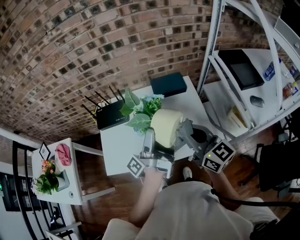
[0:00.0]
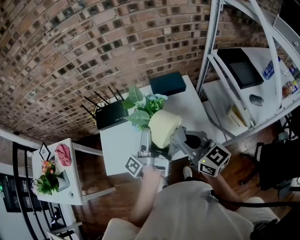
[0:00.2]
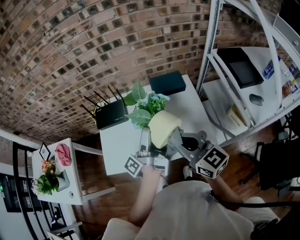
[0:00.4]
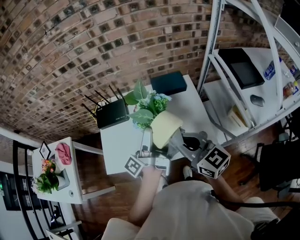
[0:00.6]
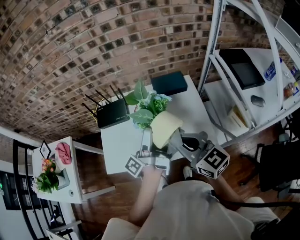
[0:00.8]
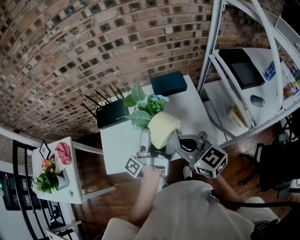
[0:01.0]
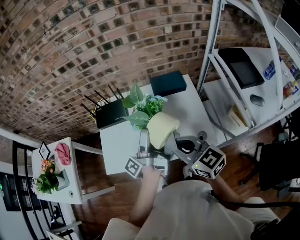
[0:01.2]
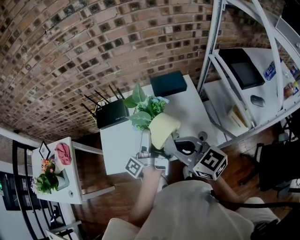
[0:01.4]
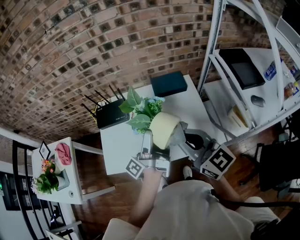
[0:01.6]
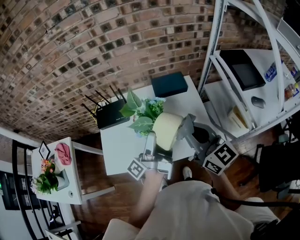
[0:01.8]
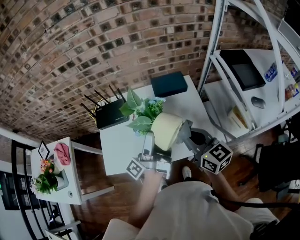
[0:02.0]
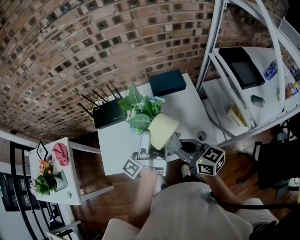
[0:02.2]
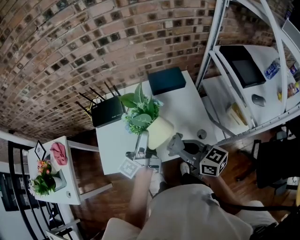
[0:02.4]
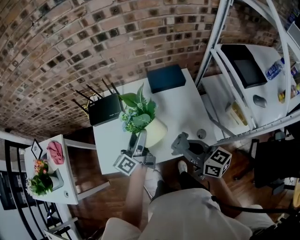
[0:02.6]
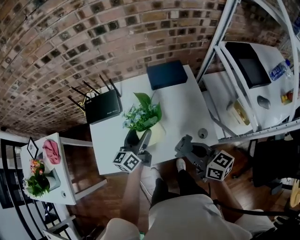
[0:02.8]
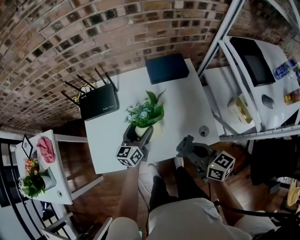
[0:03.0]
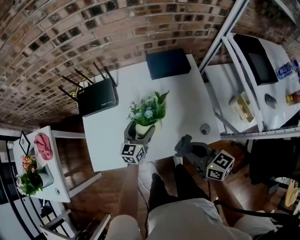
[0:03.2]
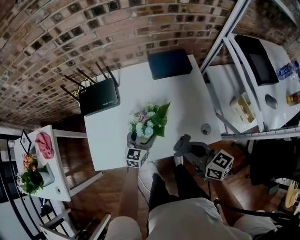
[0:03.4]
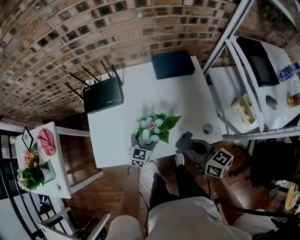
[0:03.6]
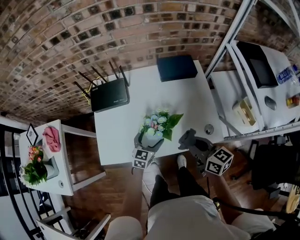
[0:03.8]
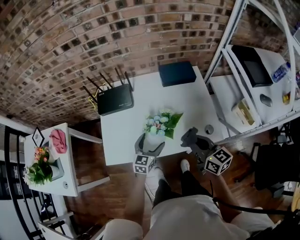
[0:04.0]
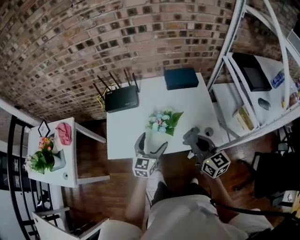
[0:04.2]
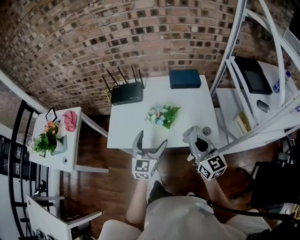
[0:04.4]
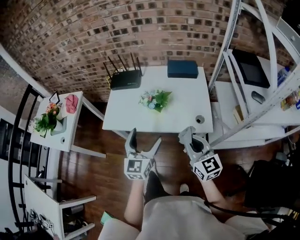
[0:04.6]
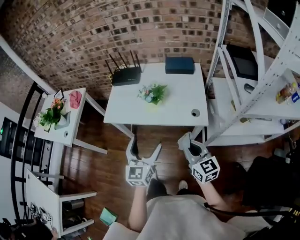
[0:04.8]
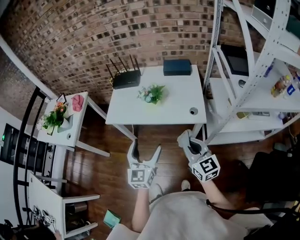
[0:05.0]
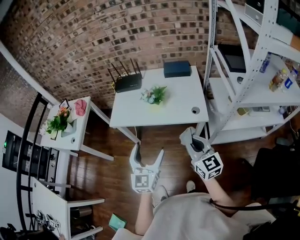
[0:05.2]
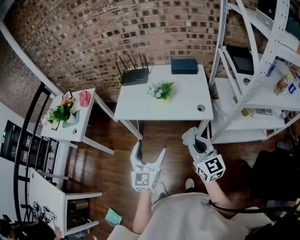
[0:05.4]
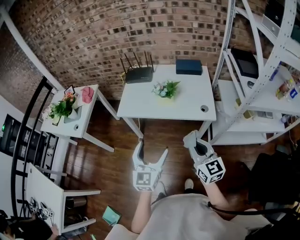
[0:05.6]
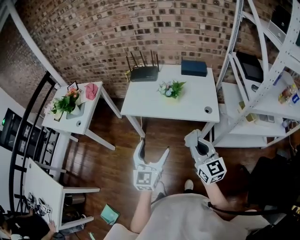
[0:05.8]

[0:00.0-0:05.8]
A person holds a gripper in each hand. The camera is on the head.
0:00.0 to 0:01.4: The right gripper moves to the left, approximately 5 cm.
0:01.4 to 0:02.8: The right gripper moves downward and to the right, about 15 cm, and rotates approximately 30 degrees, while the left gripper goes some 15 cm downward and forward, and twists approximately 50 degrees clockwise, seen from behind.
0:02.8 to 0:04.4: The right gripper heads backward, covering about 10 cm, and changes its angle by some 30 degrees; the left gripper moves backward, some 20 cm, goes downward and returns, roughly 15 cm each way, and rotates roughly 40 degrees.
0:04.4 to 0:05.8: Both grippers move backward, roughly 25 cm.

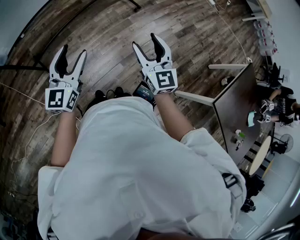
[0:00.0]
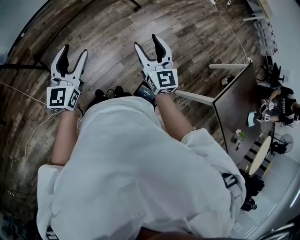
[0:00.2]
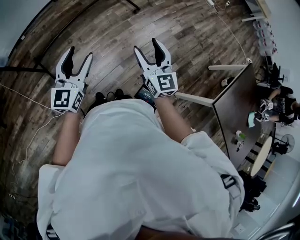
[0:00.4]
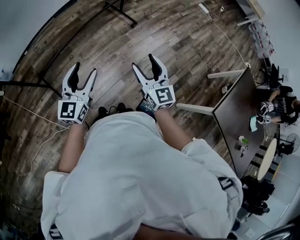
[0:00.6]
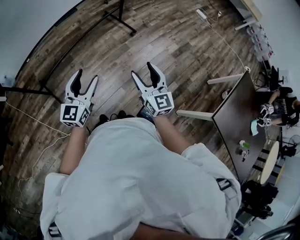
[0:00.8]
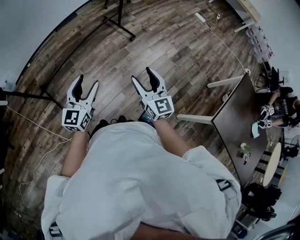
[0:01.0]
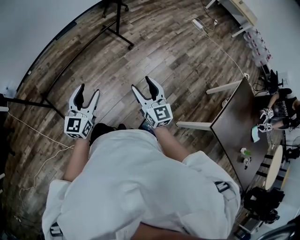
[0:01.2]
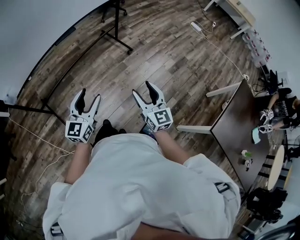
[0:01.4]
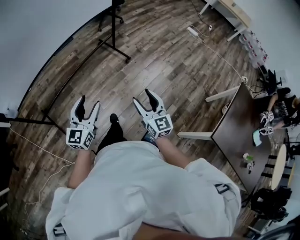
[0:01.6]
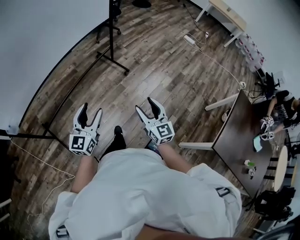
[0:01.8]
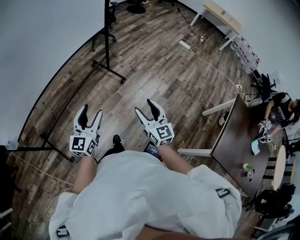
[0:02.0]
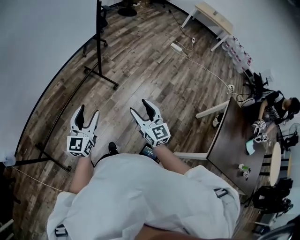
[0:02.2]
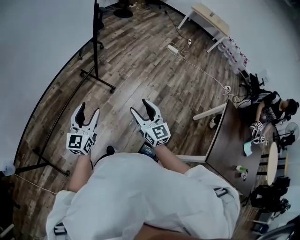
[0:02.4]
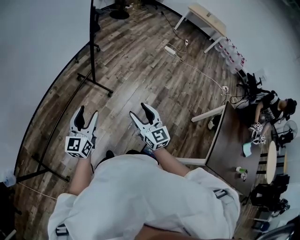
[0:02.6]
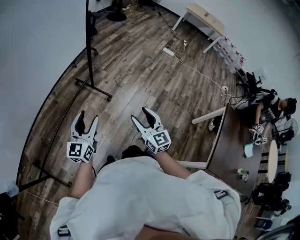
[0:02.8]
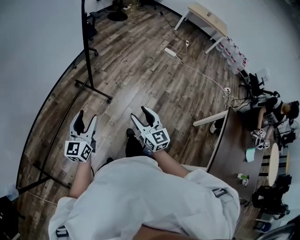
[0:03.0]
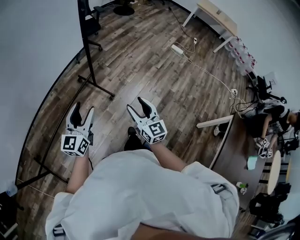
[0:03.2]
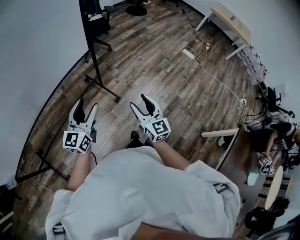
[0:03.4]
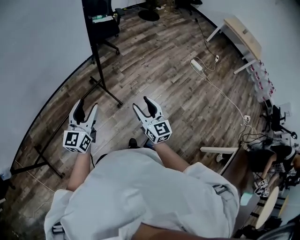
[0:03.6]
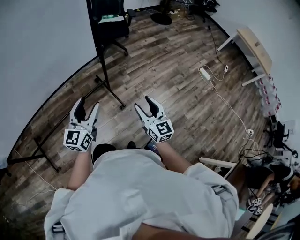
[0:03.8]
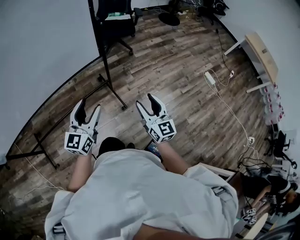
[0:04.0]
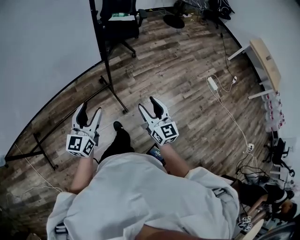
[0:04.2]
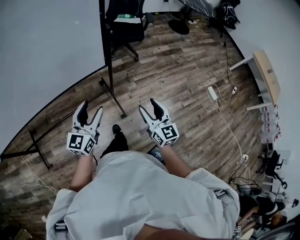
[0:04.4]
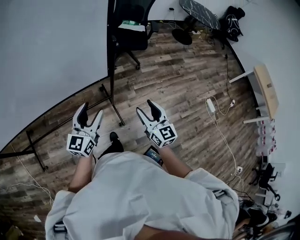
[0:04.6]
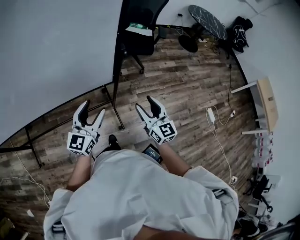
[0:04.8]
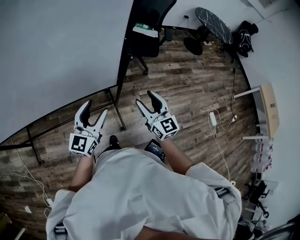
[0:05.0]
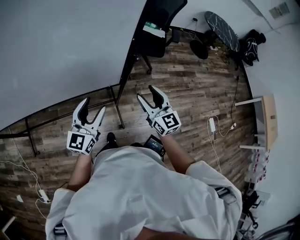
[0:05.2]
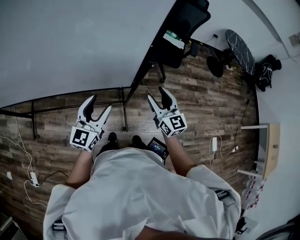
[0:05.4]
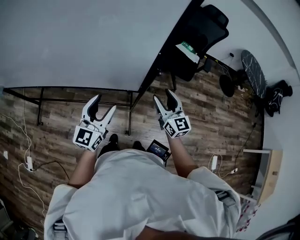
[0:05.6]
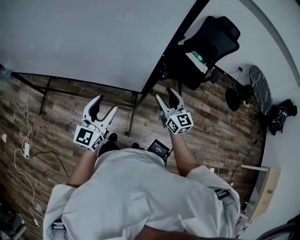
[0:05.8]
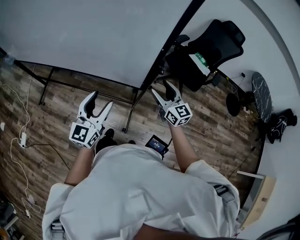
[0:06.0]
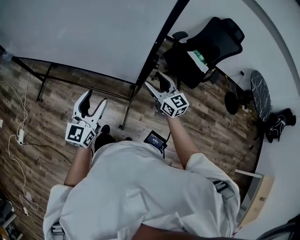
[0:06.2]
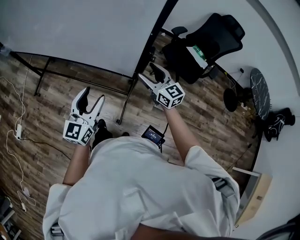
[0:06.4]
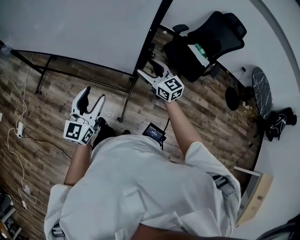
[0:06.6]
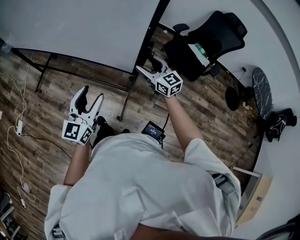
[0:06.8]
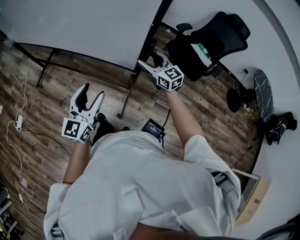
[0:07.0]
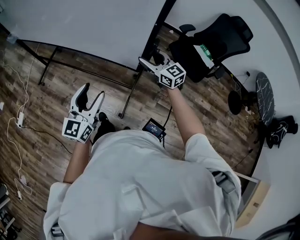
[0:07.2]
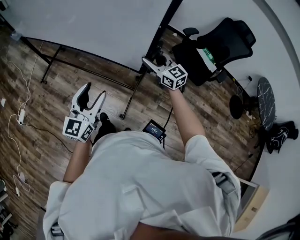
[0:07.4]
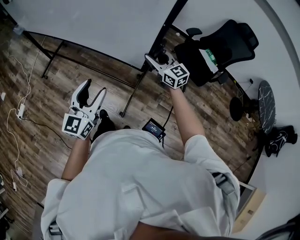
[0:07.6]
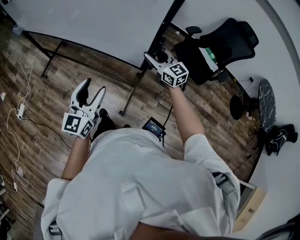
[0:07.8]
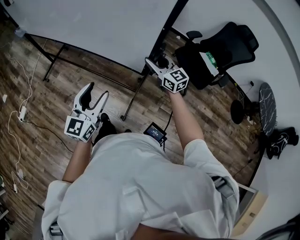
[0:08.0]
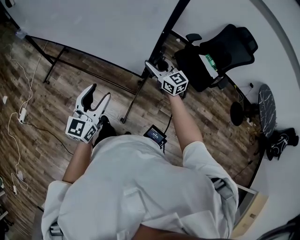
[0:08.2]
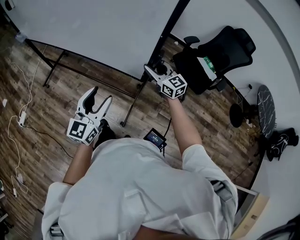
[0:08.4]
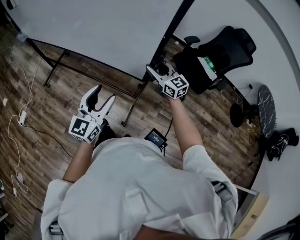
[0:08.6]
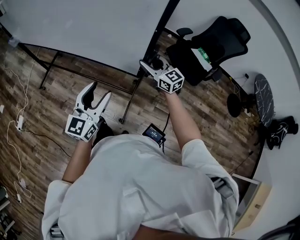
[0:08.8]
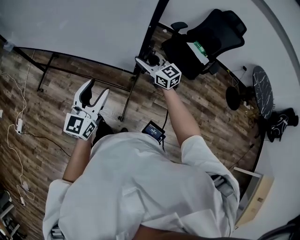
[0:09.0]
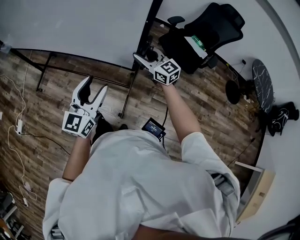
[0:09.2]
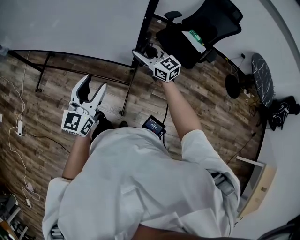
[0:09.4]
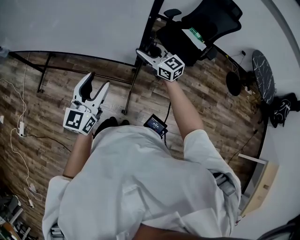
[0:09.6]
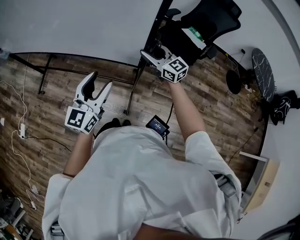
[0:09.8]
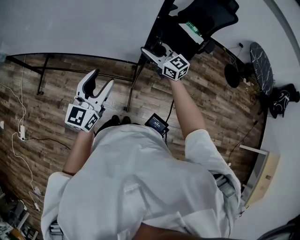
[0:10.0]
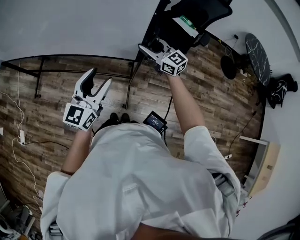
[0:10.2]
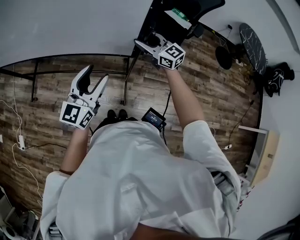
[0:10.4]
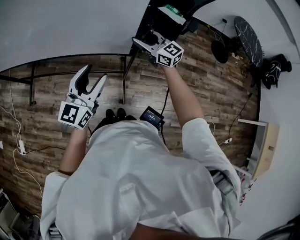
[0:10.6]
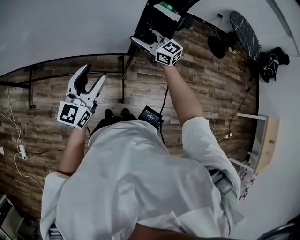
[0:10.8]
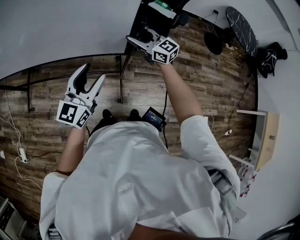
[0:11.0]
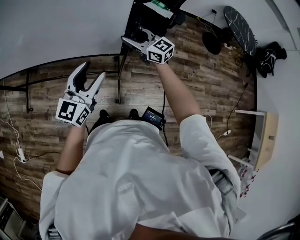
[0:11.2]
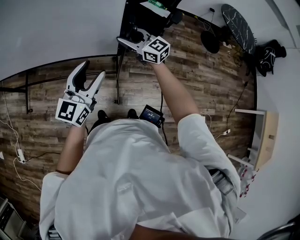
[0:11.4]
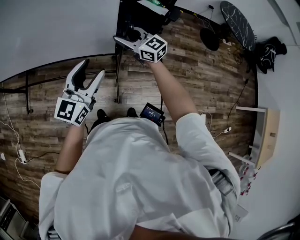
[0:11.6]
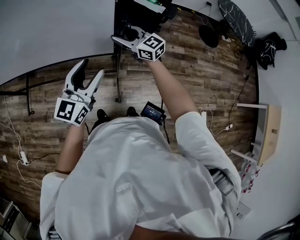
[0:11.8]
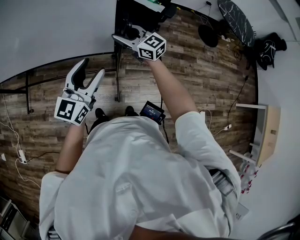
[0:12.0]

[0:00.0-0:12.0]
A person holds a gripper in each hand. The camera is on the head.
0:00.0 to 0:01.6: The right gripper heads to the right, covering about 10 cm. Meanwhile the left gripper heads to the right and forward, covering roughly 10 cm.
0:01.6 to 0:03.0: The two grippers go some 35 cm forward.
0:03.0 to 0:04.4: The left gripper shifts by approximately 35 cm, and rotates about 30 degrees; the right gripper changes place by approximately 40 cm, and changes its angle by roughly 30 degrees.
0:04.4 to 0:06.0: The right gripper changes place by approximately 30 cm, and swivels approximately 50 degrees. The left gripper moves some 10 cm, and rotates about 40 degrees.
0:06.0 to 0:07.6: The right gripper travels forward by some 5 cm, swivels approximately 20 degrees, and closes up; the left gripper heads backward, covering roughly 5 cm.
0:07.6 to 0:09.0: The left gripper shifts roughly 10 cm to the right.
0:09.0 to 0:10.4: Both grippers travel together to the right, roughly 5 cm.
0:10.4 to 0:12.0: Both grippers move to the right, about 15 cm.

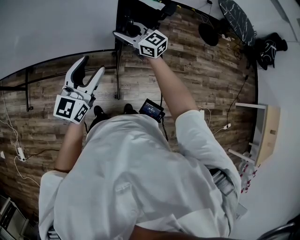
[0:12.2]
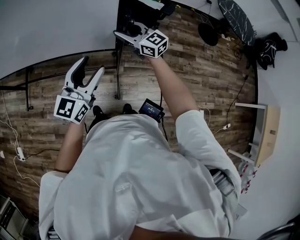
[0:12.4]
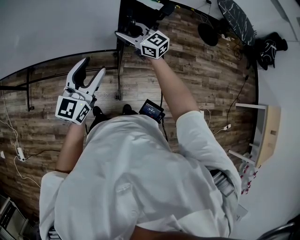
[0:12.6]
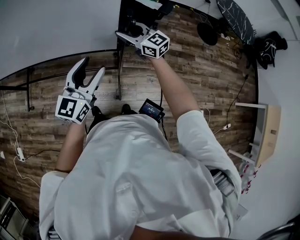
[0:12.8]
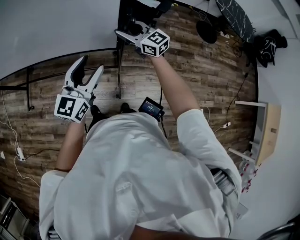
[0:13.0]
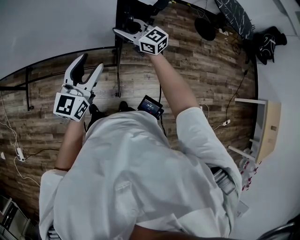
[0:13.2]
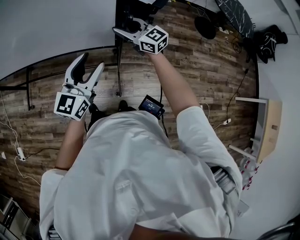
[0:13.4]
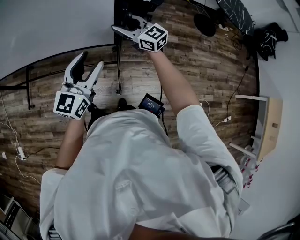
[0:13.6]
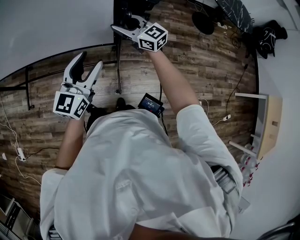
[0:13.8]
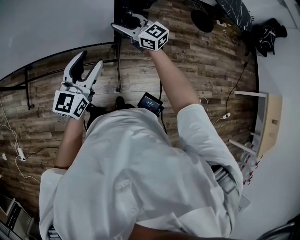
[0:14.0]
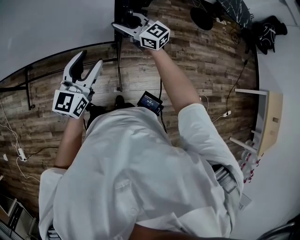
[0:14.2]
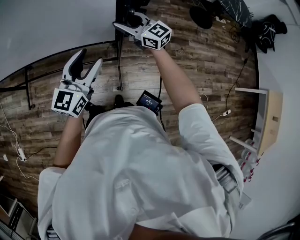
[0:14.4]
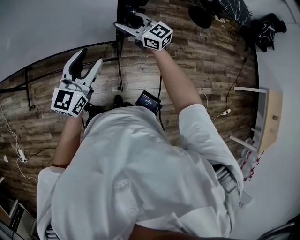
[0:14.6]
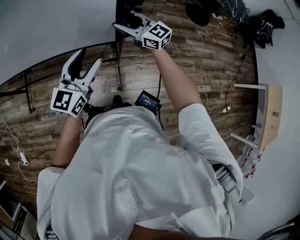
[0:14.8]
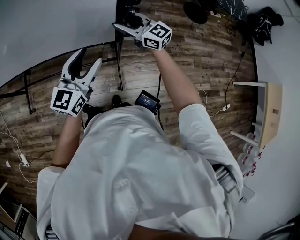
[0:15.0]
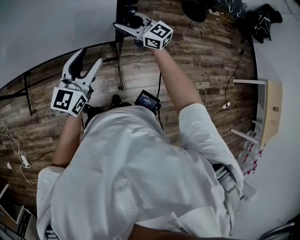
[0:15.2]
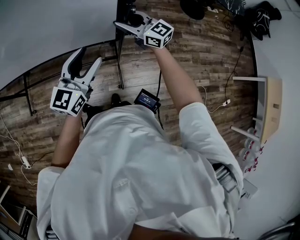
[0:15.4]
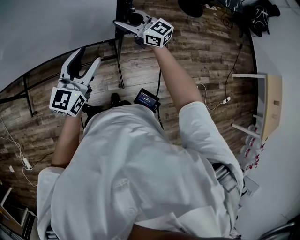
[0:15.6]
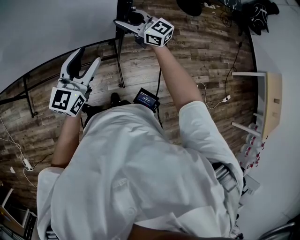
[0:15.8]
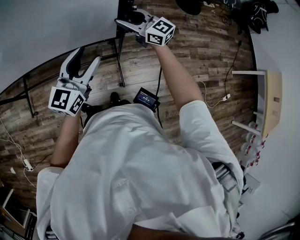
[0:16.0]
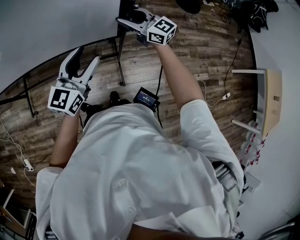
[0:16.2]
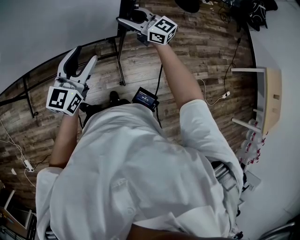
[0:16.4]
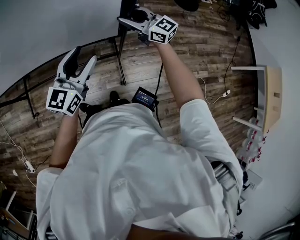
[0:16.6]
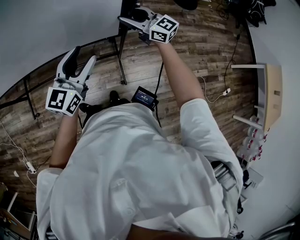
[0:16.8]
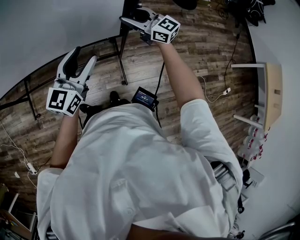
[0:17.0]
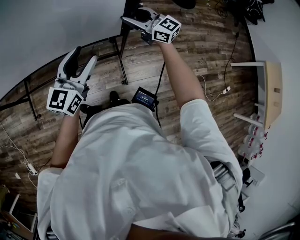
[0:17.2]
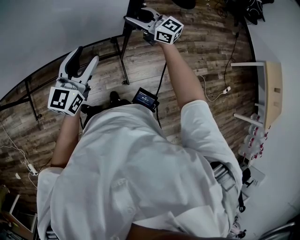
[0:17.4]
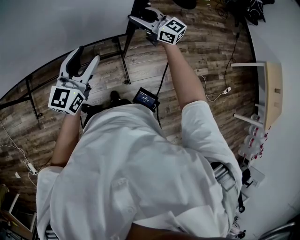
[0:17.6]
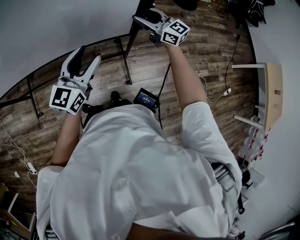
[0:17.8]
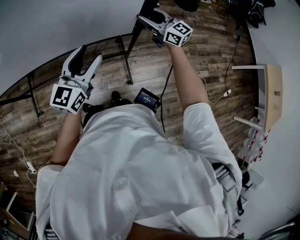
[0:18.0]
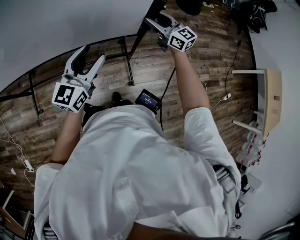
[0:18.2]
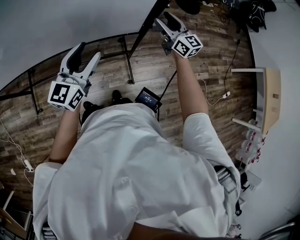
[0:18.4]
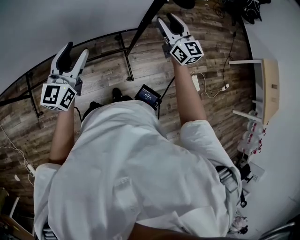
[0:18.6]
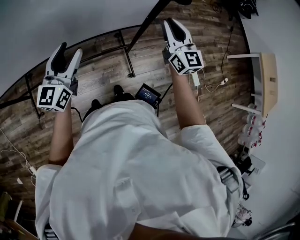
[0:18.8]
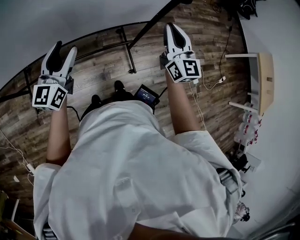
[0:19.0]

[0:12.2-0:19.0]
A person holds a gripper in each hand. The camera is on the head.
0:12.2 to 0:13.6: The grippers both shift to the right by approximately 10 cm.
0:13.6 to 0:15.0: Both grippers move to the right, some 10 cm.
0:15.0 to 0:16.2: The right gripper goes some 5 cm to the right.
0:16.2 to 0:17.6: The right gripper heads to the right, covering approximately 10 cm.
0:17.6 to 0:19.0: The right gripper goes some 20 cm backward, to the left and upward, swivels some 40 degrees, and closes up, while the left gripper is displaced to the left by roughly 25 cm.
